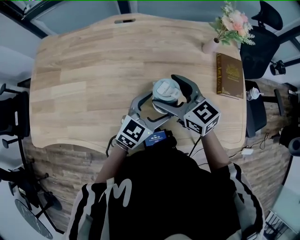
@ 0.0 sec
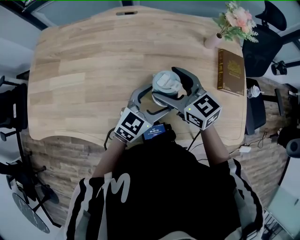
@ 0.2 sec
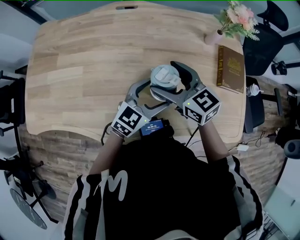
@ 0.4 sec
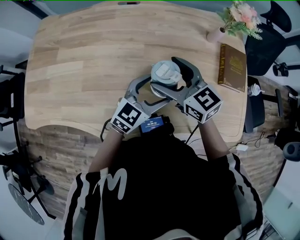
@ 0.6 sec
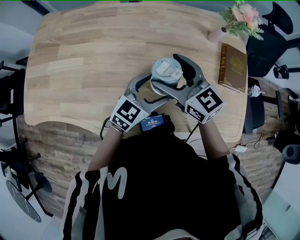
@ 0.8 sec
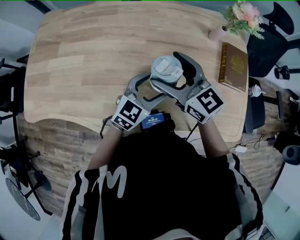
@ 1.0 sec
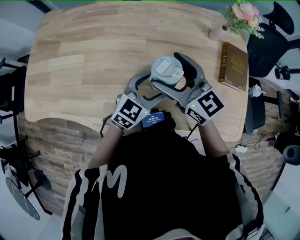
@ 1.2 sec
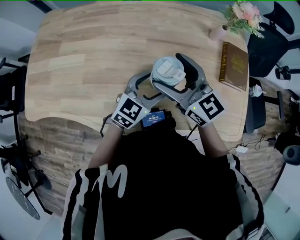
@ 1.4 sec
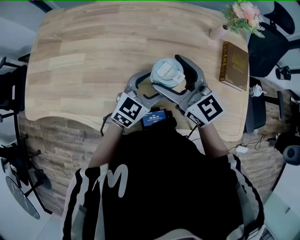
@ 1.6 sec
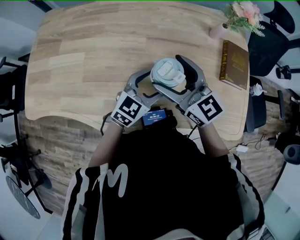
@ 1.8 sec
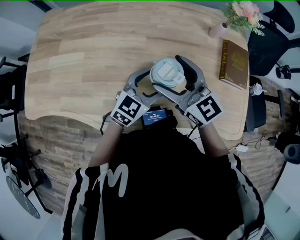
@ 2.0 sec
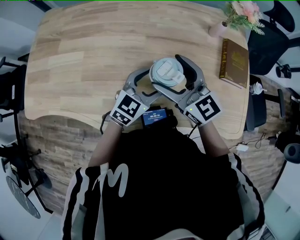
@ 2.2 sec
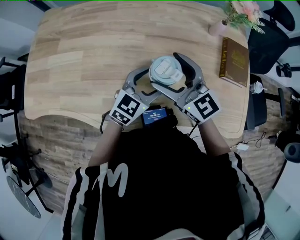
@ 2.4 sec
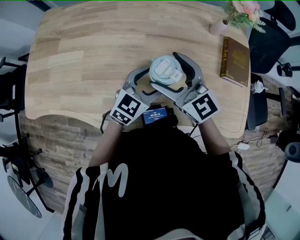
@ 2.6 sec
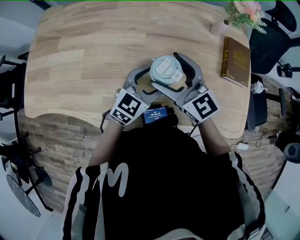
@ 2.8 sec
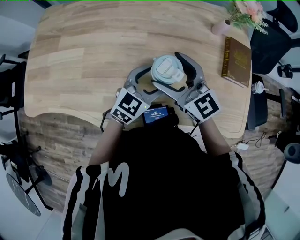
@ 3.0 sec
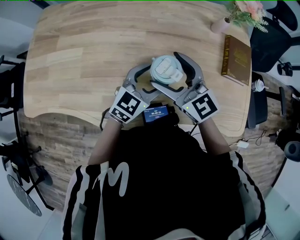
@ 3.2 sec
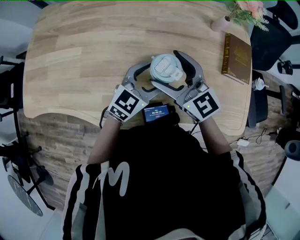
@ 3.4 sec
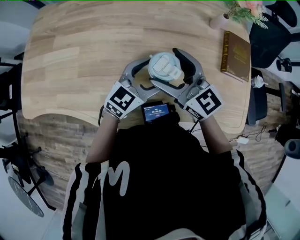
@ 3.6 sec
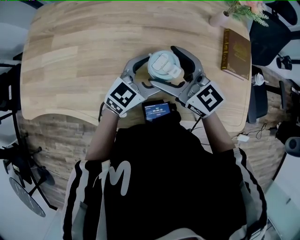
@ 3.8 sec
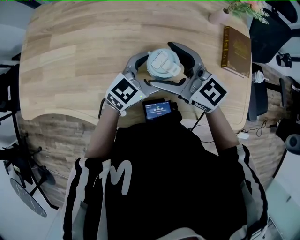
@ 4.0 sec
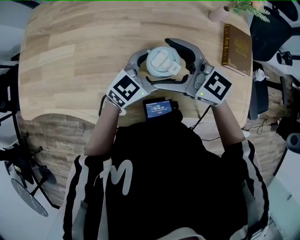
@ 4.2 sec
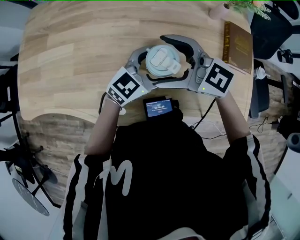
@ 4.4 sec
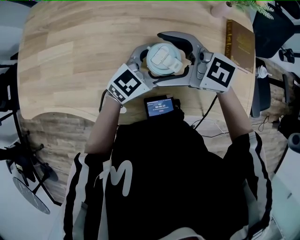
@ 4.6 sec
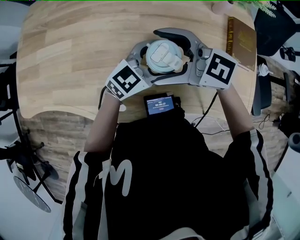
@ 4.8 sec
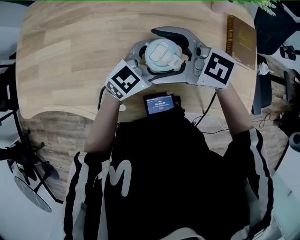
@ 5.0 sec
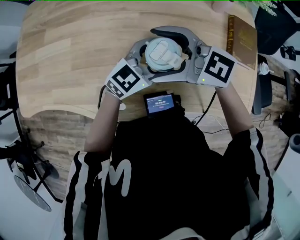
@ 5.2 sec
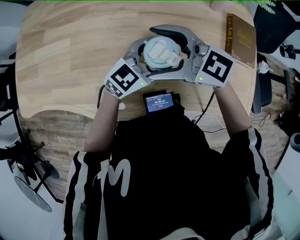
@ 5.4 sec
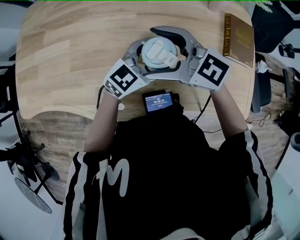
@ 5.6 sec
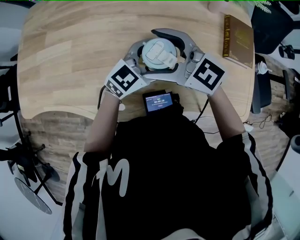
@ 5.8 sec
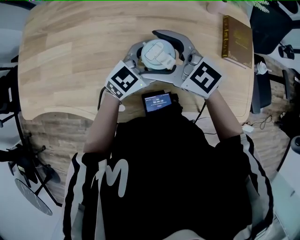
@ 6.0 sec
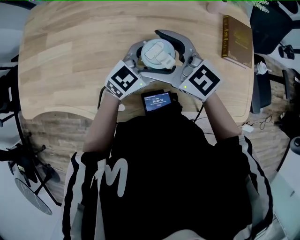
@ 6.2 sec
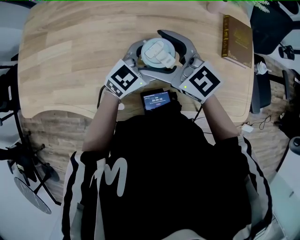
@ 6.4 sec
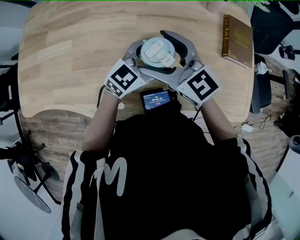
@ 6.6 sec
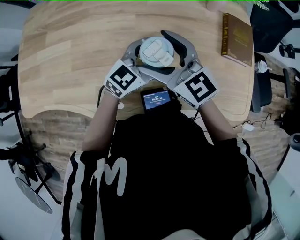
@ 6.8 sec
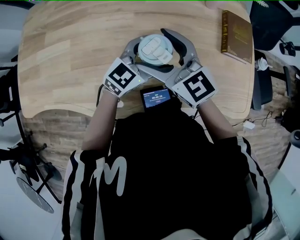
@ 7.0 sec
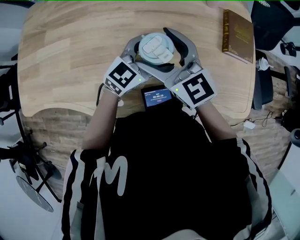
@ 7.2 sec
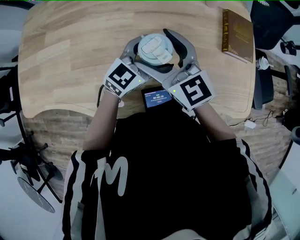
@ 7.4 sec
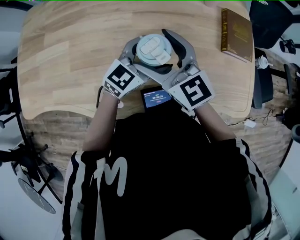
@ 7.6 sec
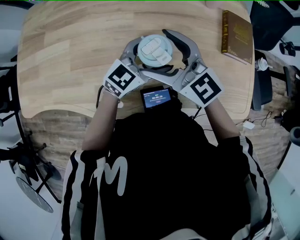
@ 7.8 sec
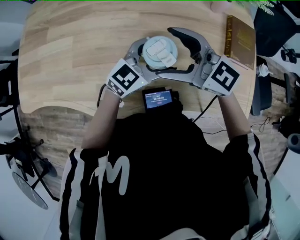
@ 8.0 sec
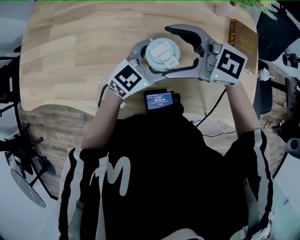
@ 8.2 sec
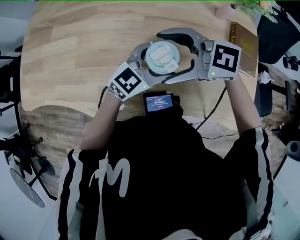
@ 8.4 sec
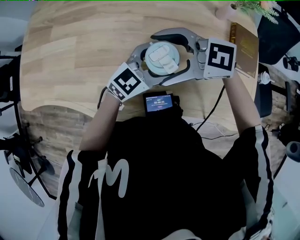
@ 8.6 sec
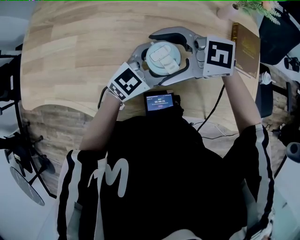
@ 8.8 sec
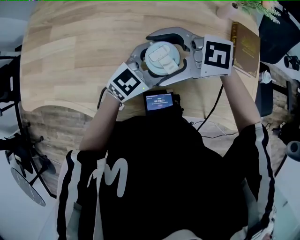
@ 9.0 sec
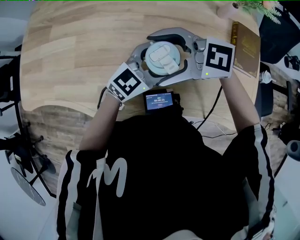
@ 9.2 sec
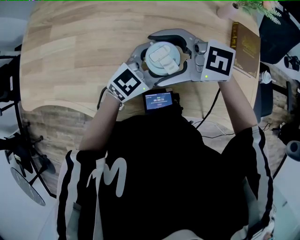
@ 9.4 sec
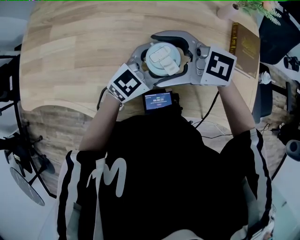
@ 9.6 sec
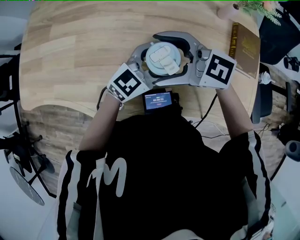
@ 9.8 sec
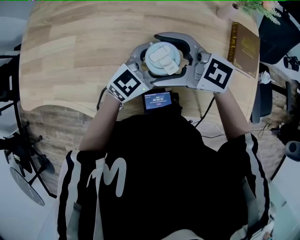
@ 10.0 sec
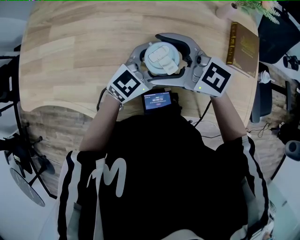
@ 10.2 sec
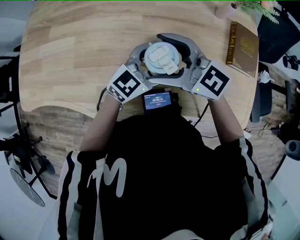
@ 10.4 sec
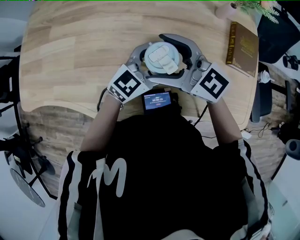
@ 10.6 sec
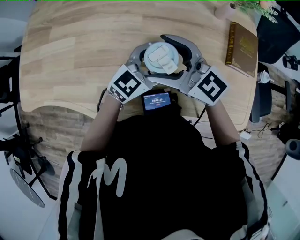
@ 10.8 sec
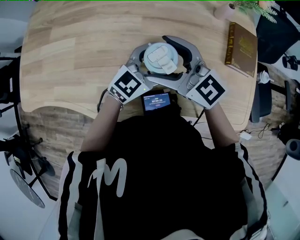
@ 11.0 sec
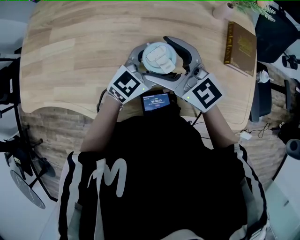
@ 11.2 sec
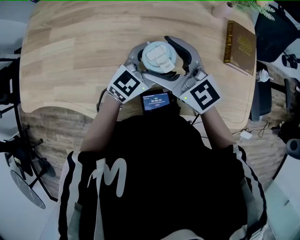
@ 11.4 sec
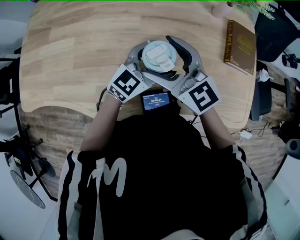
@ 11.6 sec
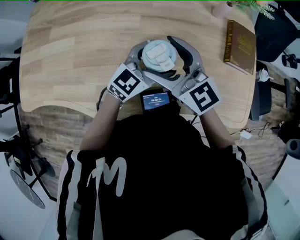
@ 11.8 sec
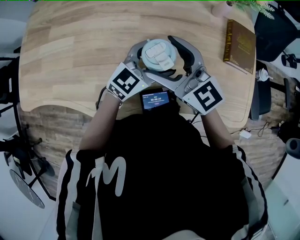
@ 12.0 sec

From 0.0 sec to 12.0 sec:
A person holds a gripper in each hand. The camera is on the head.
From 0.0 sec to 3.0 sec: The grippers make only small movements.
From 3.0 sec to 4.4 sec: The right gripper changes its angle by roughly 30 degrees.
From 4.4 sec to 6.0 sec: The grippers stay close to where they were, moving slightly.
From 6.0 sec to 7.6 sec: The right gripper turns by some 20 degrees.
From 7.6 sec to 9.0 sec: The right gripper turns by some 60 degrees.
From 9.0 sec to 10.4 sec: The right gripper changes its angle by approximately 30 degrees.
From 10.4 sec to 12.0 sec: The right gripper rotates about 20 degrees.

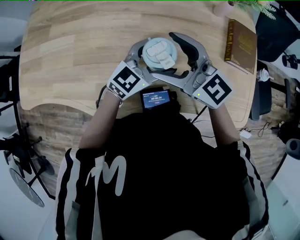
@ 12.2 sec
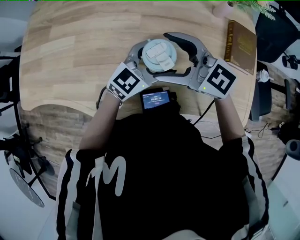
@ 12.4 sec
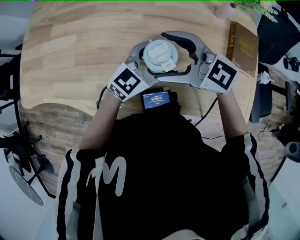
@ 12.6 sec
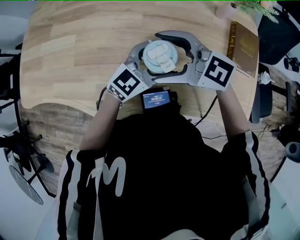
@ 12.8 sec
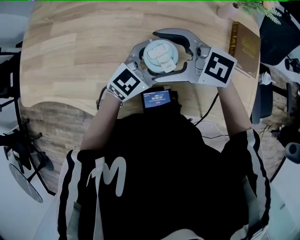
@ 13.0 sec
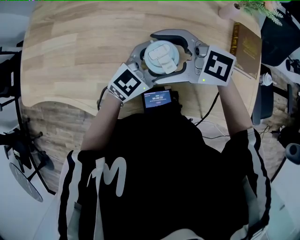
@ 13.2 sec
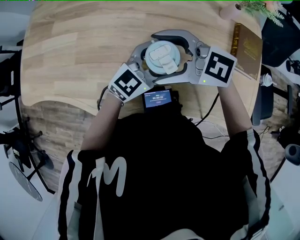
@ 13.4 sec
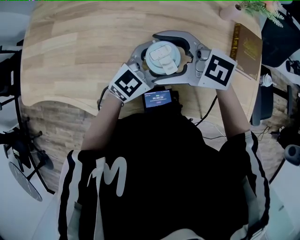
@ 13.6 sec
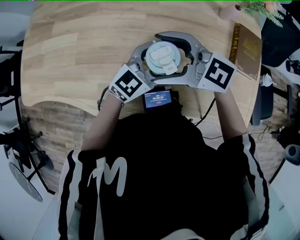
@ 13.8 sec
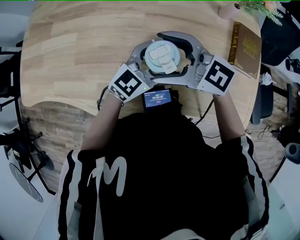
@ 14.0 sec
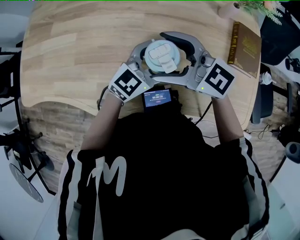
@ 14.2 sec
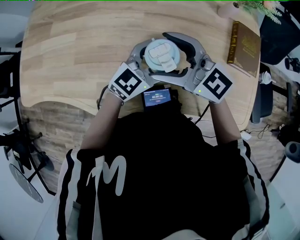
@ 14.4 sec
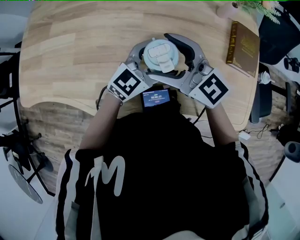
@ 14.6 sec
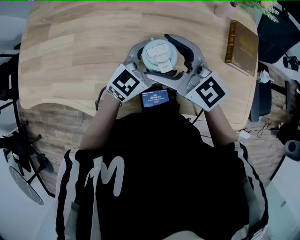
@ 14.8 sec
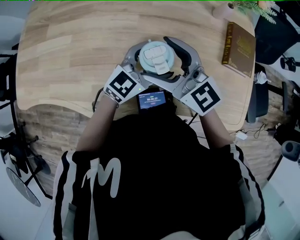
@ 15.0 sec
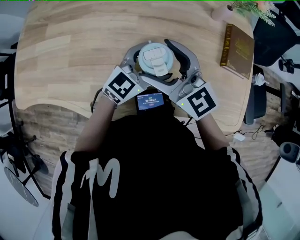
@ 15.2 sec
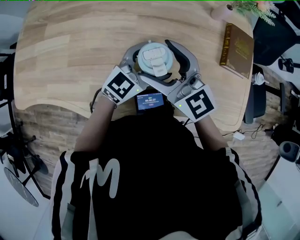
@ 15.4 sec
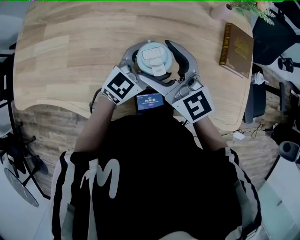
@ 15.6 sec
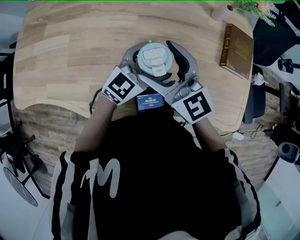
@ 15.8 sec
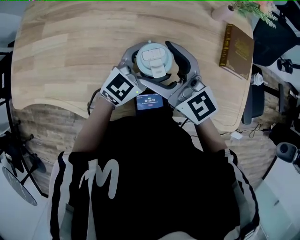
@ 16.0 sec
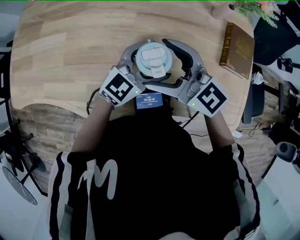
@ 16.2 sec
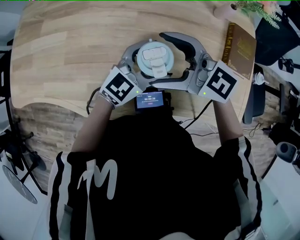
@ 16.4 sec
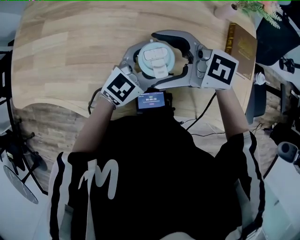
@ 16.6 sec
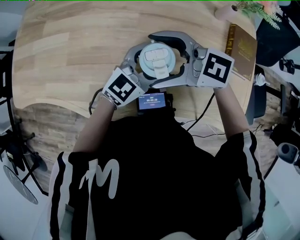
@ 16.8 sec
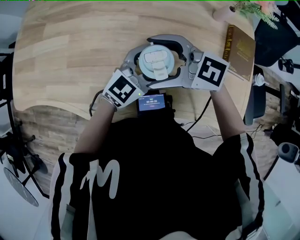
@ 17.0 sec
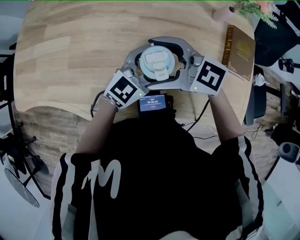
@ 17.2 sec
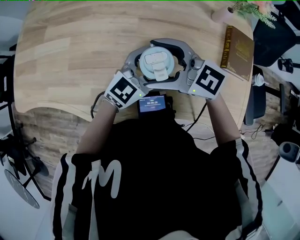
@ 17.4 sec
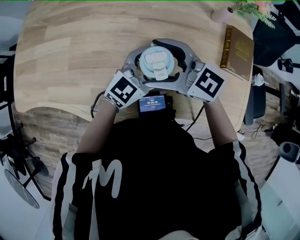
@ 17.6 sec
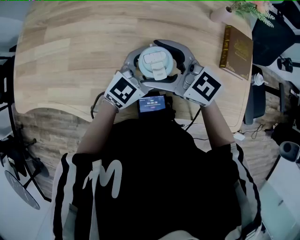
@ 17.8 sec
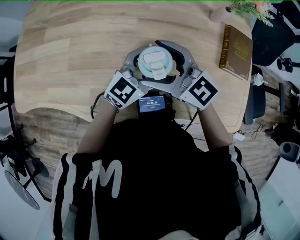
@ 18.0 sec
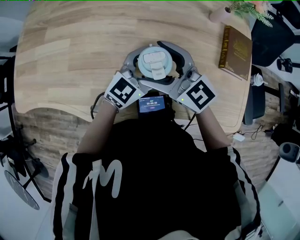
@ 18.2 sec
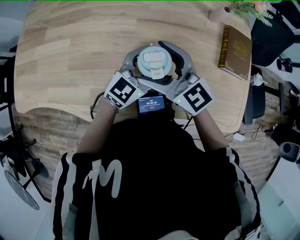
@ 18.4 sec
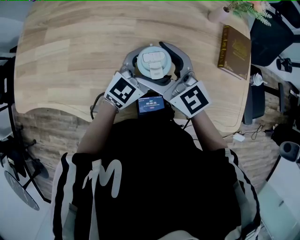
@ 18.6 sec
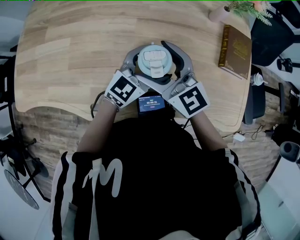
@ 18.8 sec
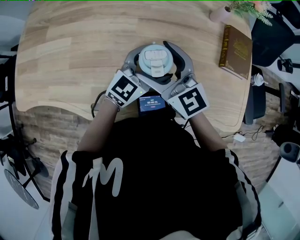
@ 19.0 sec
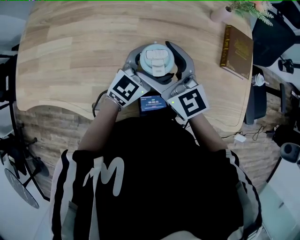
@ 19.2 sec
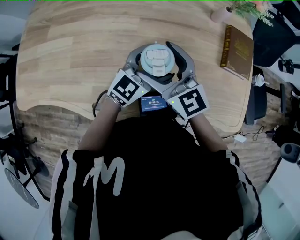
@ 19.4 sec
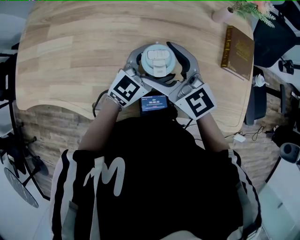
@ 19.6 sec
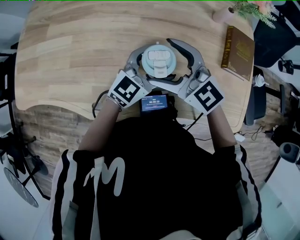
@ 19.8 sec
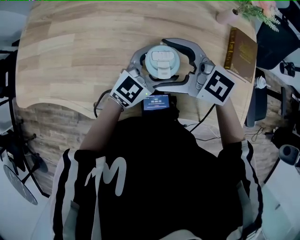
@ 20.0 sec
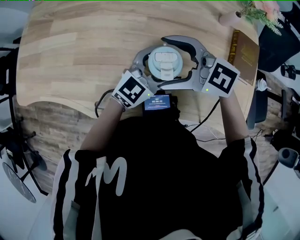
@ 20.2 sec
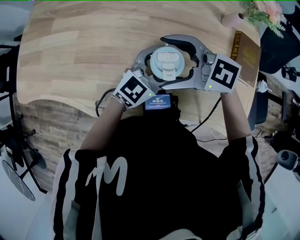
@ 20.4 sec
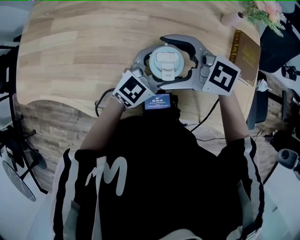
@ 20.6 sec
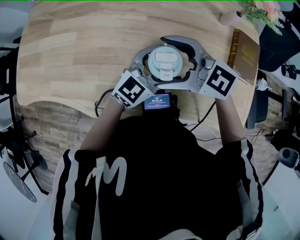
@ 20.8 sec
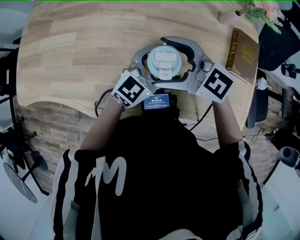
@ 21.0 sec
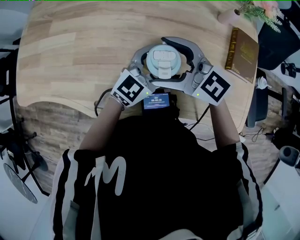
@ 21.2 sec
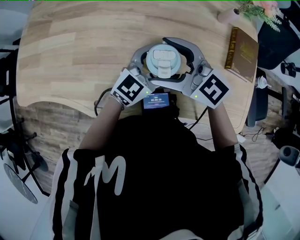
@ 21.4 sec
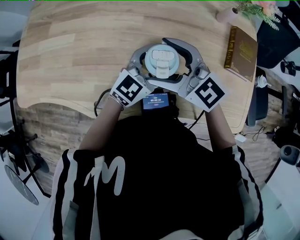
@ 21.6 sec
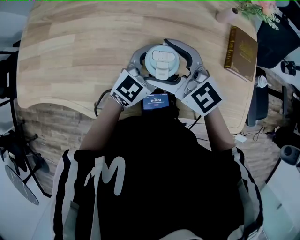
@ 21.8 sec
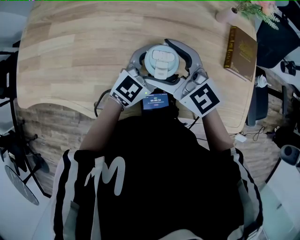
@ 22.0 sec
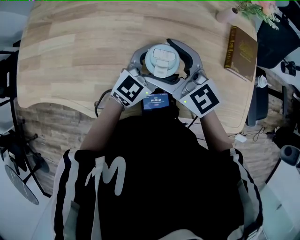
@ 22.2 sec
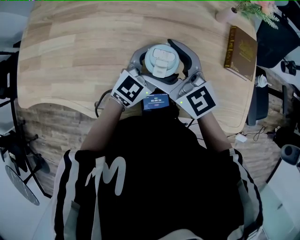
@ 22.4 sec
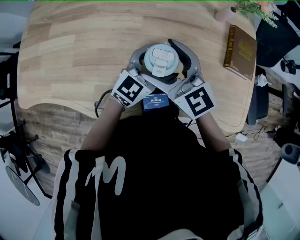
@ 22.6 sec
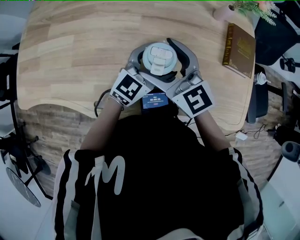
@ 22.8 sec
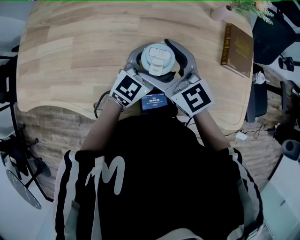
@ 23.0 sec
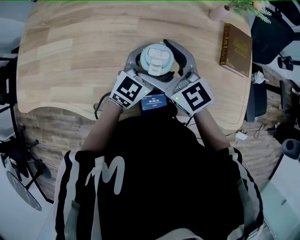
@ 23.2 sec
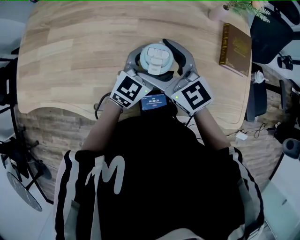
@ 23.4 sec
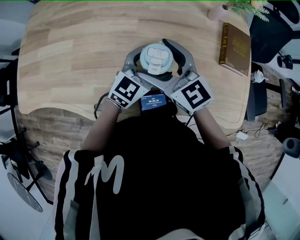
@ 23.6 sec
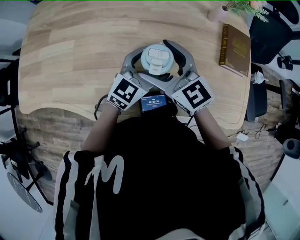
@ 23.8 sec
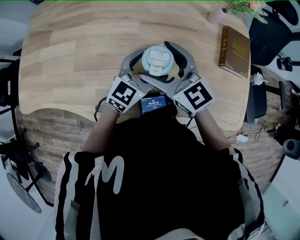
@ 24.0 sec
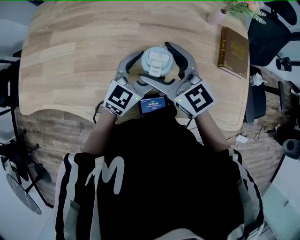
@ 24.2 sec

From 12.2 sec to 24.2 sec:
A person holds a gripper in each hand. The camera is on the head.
From 12.2 sec to 13.8 sec: The right gripper rotates about 20 degrees.
From 13.8 sec to 15.2 sec: The right gripper rotates roughly 30 degrees.
From 15.2 sec to 16.6 sec: The right gripper swivels approximately 40 degrees.
From 16.6 sec to 18.2 sec: The right gripper turns by some 30 degrees.
From 18.2 sec to 19.8 sec: The grippers make only small movements.
From 21.2 sec to 22.6 sec: The right gripper turns by some 30 degrees.
From 22.6 sec to 24.2 sec: The grippers move only a little.
